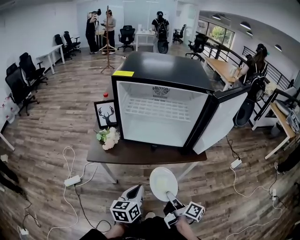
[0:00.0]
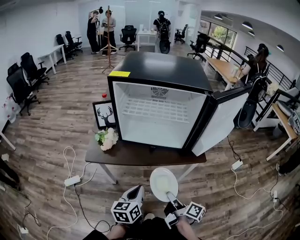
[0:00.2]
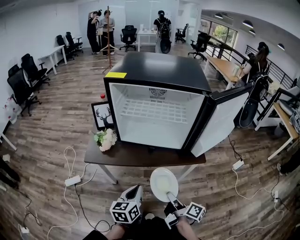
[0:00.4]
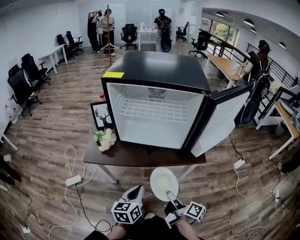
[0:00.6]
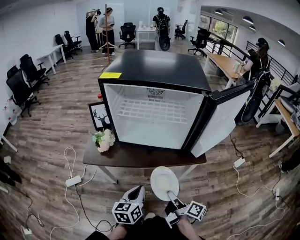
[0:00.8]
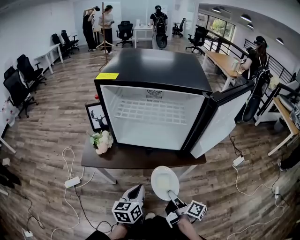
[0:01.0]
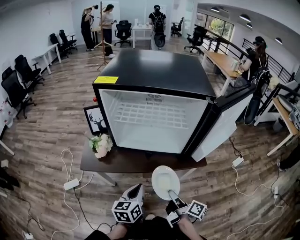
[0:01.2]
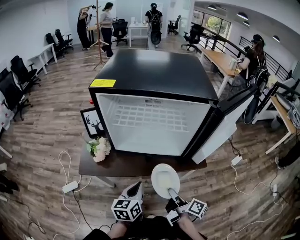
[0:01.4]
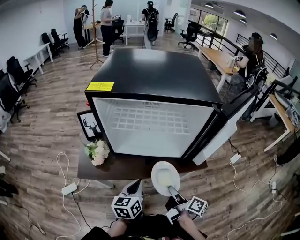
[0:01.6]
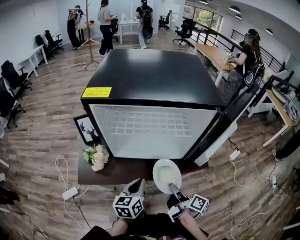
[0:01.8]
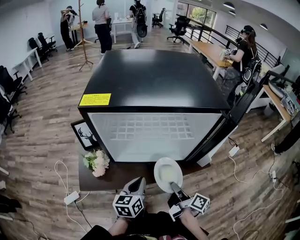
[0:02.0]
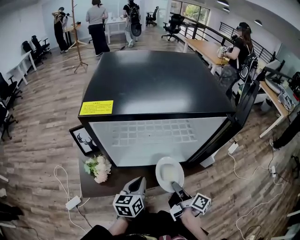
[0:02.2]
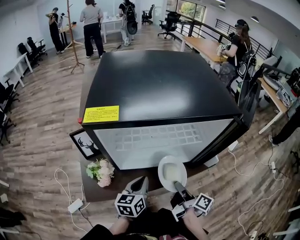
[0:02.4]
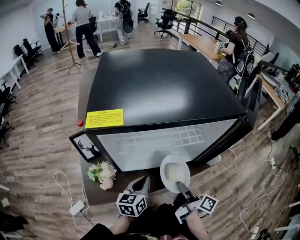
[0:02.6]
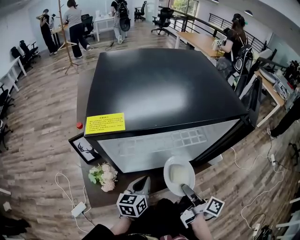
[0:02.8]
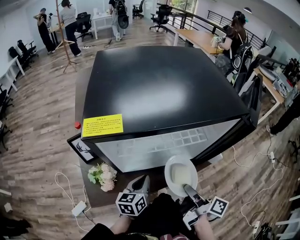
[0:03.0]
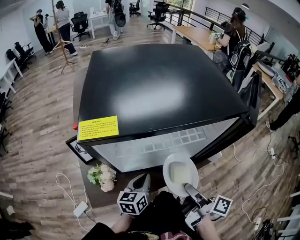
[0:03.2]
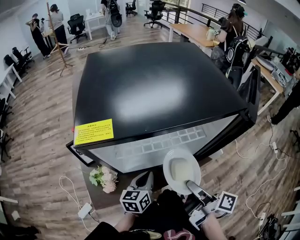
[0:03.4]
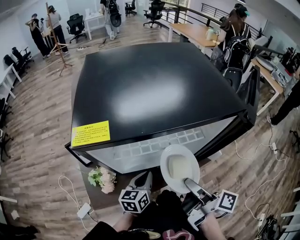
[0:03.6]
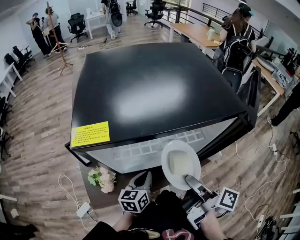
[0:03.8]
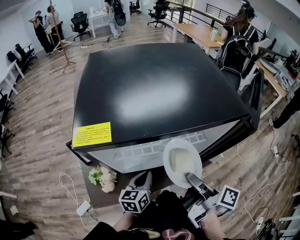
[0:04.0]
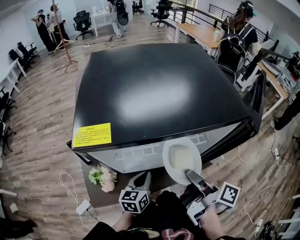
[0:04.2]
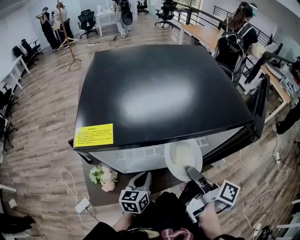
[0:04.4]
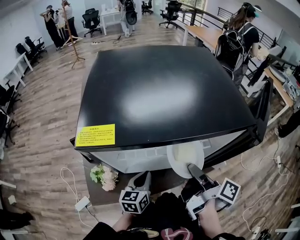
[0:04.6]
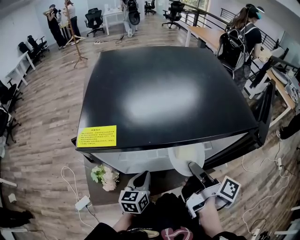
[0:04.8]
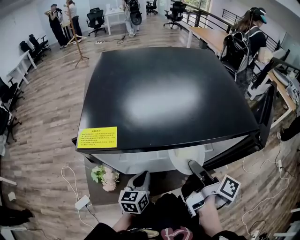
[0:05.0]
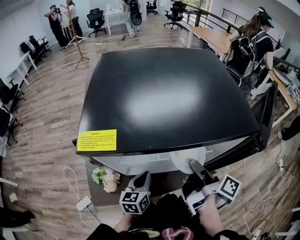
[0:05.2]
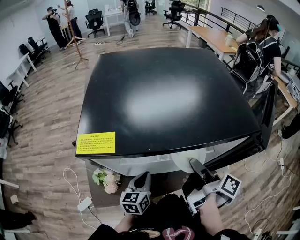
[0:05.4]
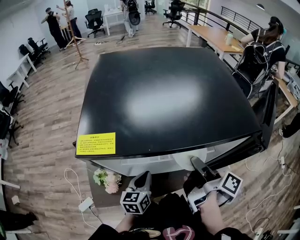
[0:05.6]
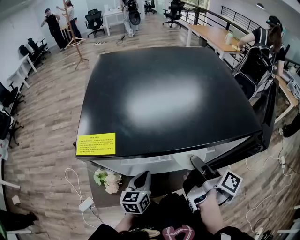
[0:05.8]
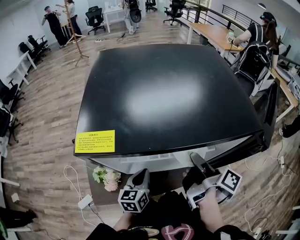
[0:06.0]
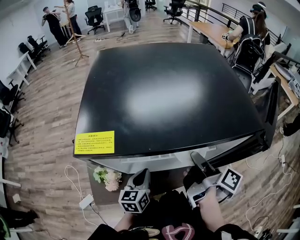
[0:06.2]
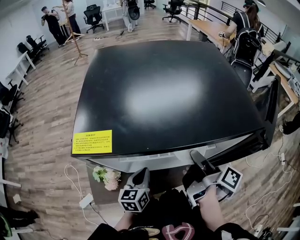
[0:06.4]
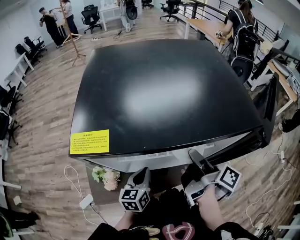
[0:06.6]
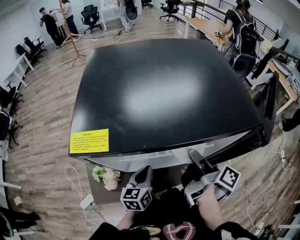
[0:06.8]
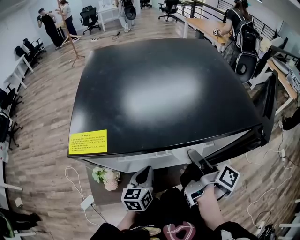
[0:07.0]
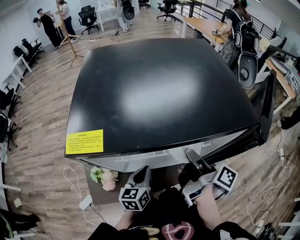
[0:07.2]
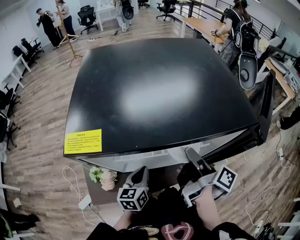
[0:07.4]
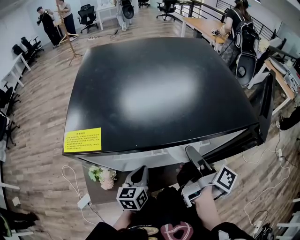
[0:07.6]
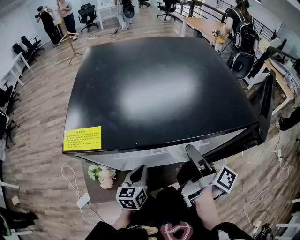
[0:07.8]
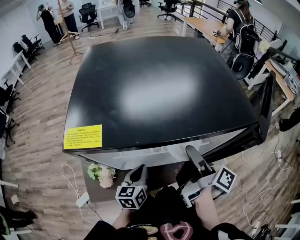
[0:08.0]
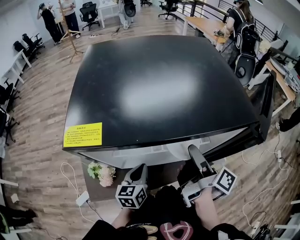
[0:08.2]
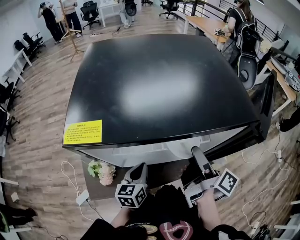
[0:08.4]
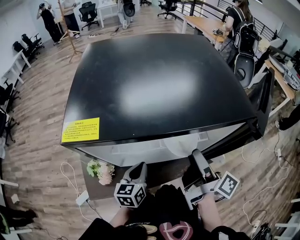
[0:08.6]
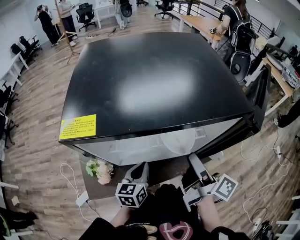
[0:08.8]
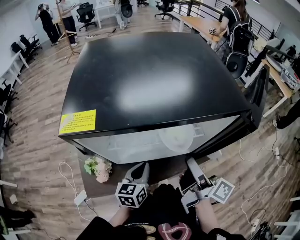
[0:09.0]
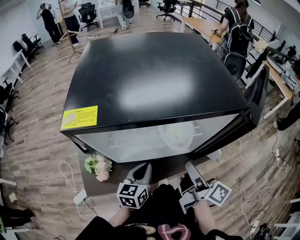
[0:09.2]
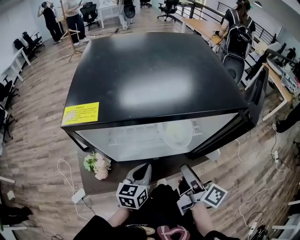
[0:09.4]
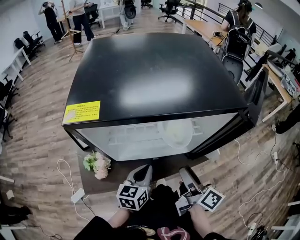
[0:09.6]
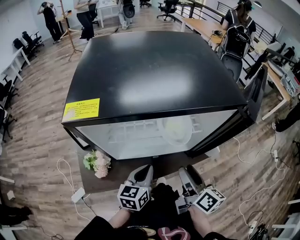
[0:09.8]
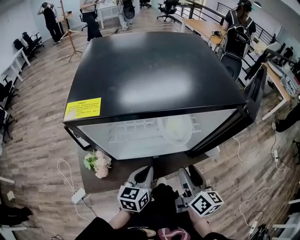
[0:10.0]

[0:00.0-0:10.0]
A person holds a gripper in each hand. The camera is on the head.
0:00.0 to 0:01.4: Both grippers move forward, roughly 10 cm.
0:01.4 to 0:02.8: The right gripper goes about 15 cm forward, to the left and upward. Meanwhile the left gripper travels forward and to the left by about 15 cm.
0:02.8 to 0:04.2: The right gripper heads upward and forward, covering approximately 10 cm.
0:04.2 to 0:05.8: The right gripper is displaced forward by approximately 10 cm.
0:05.8 to 0:07.2: The grippers make only small movements.
0:07.2 to 0:08.6: The right gripper opens its fingers.
0:08.6 to 0:10.0: The left gripper goes about 5 cm backward, while the right gripper is displaced backward and downward by approximately 10 cm, and turns by roughly 40 degrees.

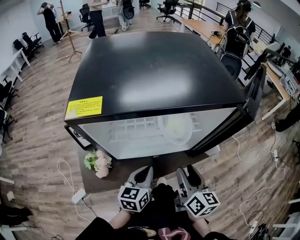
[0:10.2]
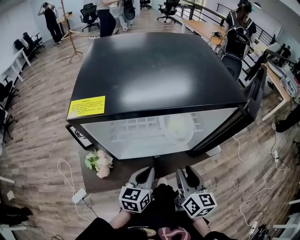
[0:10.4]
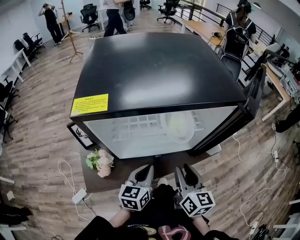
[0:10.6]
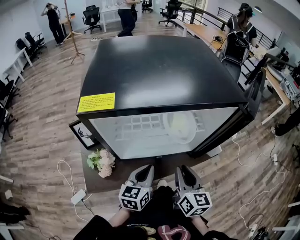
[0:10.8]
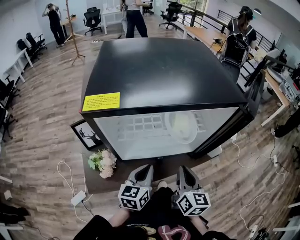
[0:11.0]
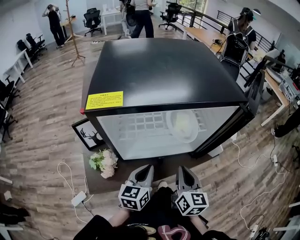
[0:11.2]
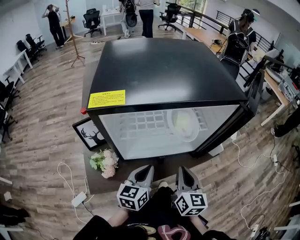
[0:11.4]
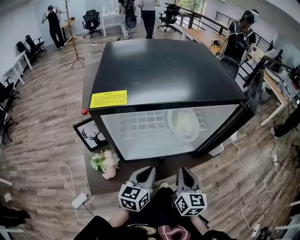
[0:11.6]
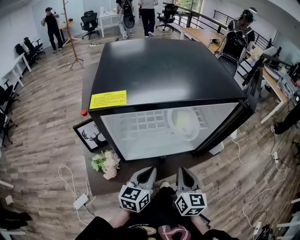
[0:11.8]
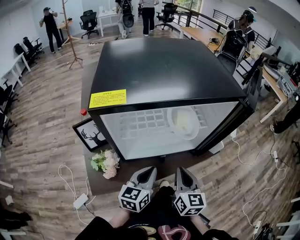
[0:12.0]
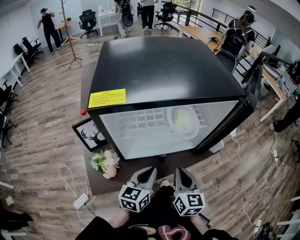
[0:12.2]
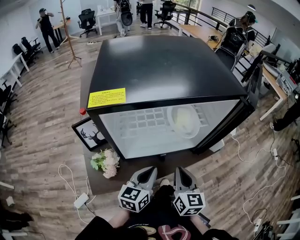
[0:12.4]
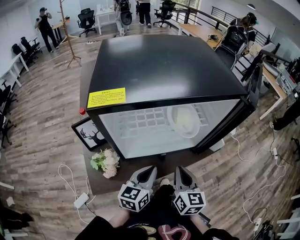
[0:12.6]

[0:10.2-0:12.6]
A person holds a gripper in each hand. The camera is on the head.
0:10.2 to 0:11.4: The right gripper closes its fingers.
0:11.4 to 0:12.6: There are only small adjustments of the grippers.

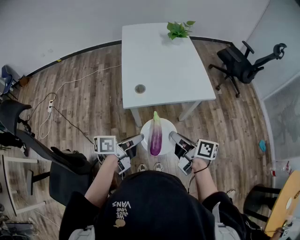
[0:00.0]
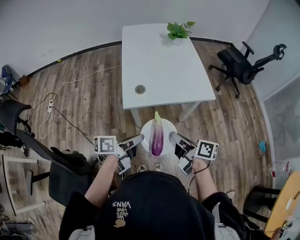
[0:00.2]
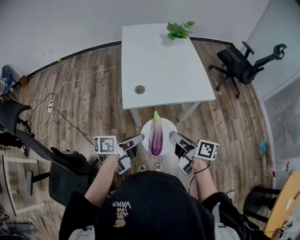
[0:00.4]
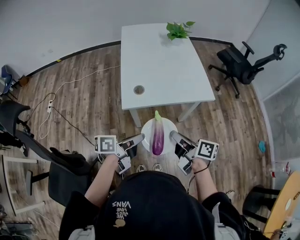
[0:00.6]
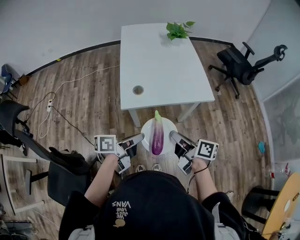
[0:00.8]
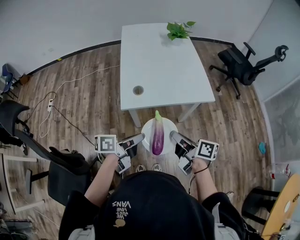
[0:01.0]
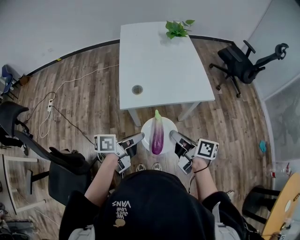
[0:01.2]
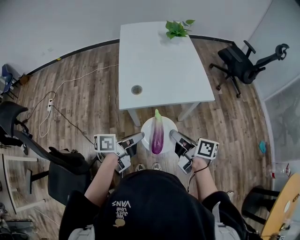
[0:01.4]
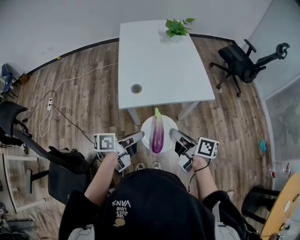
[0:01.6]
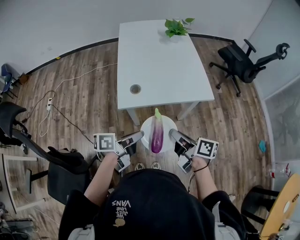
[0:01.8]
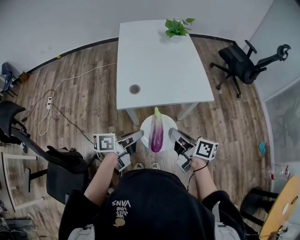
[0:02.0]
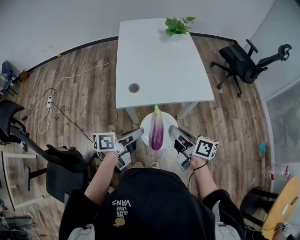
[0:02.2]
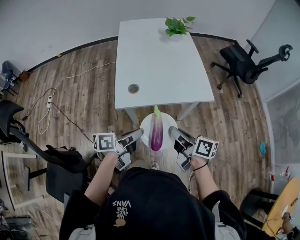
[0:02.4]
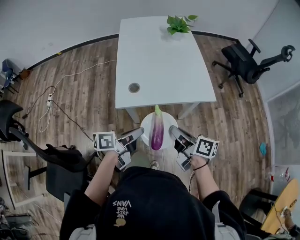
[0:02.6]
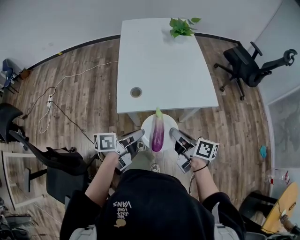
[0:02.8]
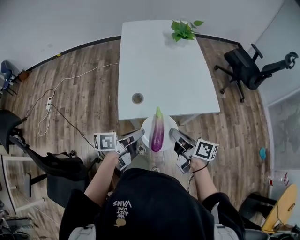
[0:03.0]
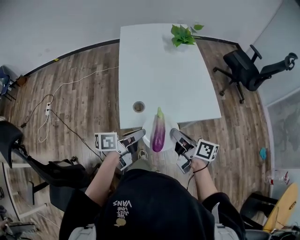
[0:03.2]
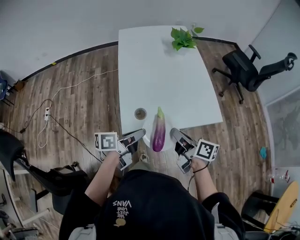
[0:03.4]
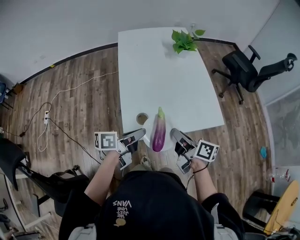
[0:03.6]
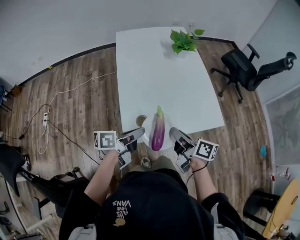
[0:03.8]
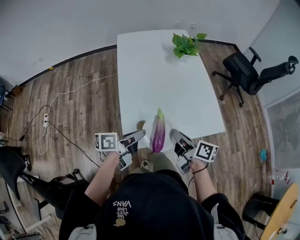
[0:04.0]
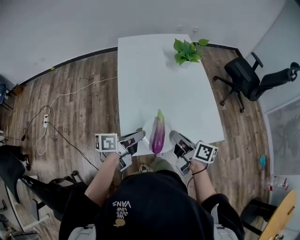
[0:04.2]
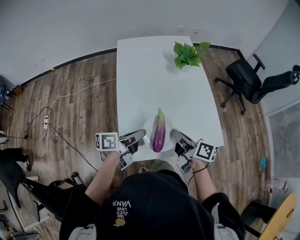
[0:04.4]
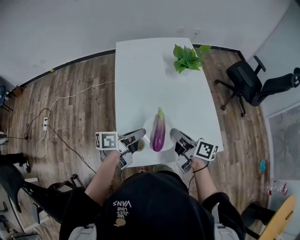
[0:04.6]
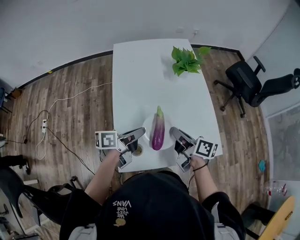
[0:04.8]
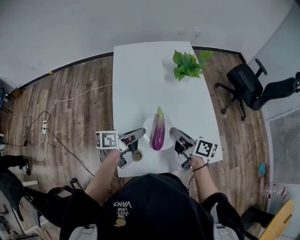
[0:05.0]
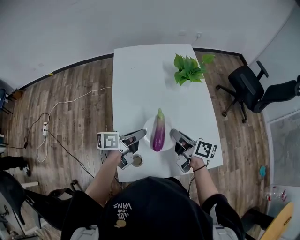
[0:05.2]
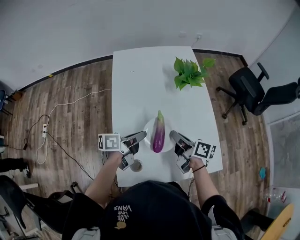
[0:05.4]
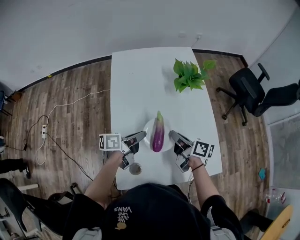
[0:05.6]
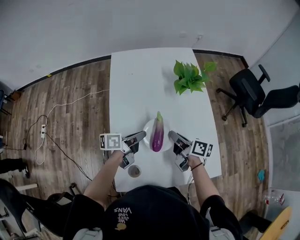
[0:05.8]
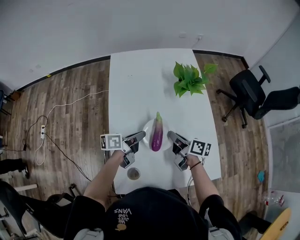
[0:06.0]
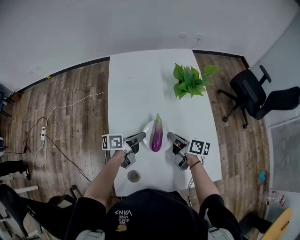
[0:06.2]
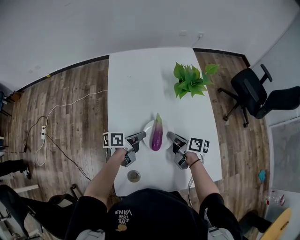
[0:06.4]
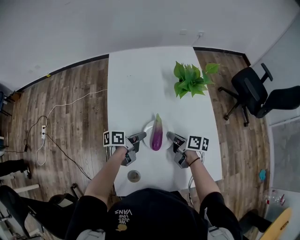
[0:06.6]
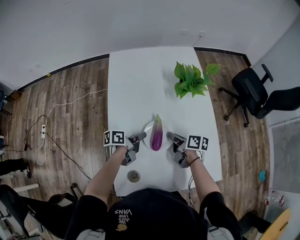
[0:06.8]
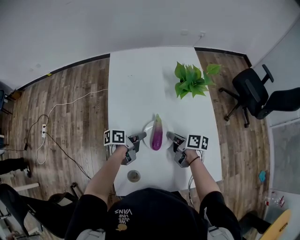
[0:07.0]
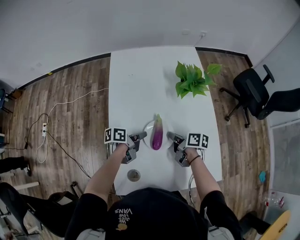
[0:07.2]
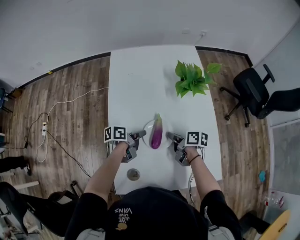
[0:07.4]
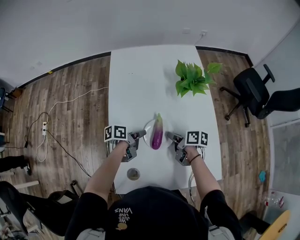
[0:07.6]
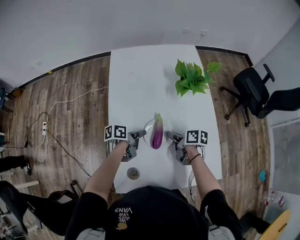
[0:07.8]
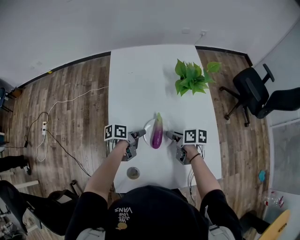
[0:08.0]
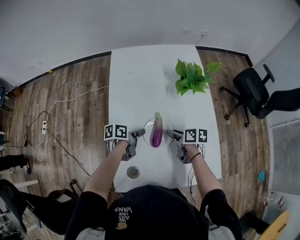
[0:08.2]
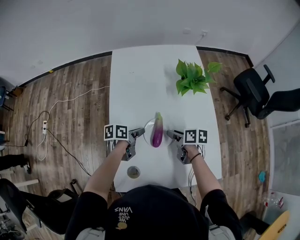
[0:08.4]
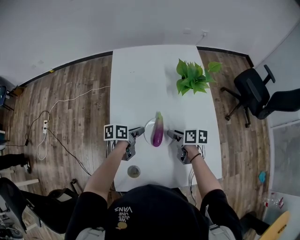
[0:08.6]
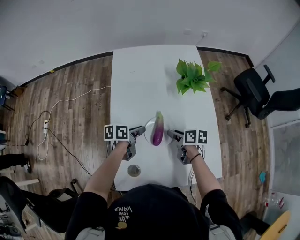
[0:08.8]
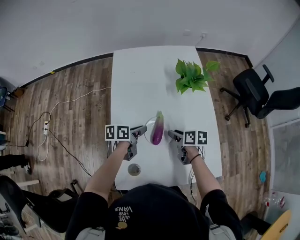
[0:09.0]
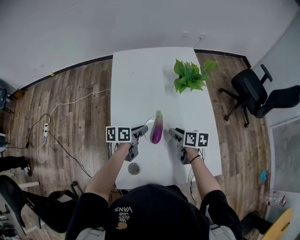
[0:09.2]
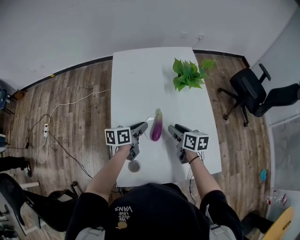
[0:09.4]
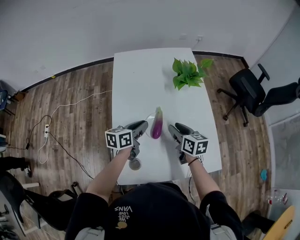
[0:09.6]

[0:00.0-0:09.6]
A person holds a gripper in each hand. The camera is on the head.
0:00.0 to 0:01.6: The grippers make only small movements.
0:01.6 to 0:03.2: Both grippers move forward, approximately 10 cm.
0:03.2 to 0:04.8: The two grippers go about 25 cm forward.
0:04.8 to 0:06.4: Both grippers travel together forward and downward, approximately 15 cm.
0:06.4 to 0:08.0: The right gripper opens its fingers.
0:08.0 to 0:09.6: Both grippers travel together upward, roughly 10 cm. The left gripper turns by roughly 40 degrees; the right gripper rotates some 30 degrees.

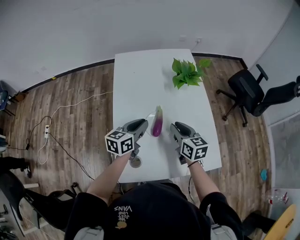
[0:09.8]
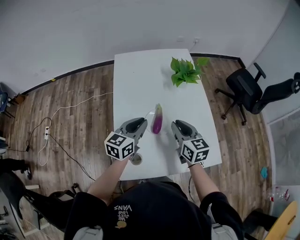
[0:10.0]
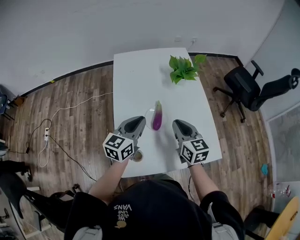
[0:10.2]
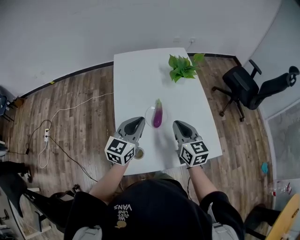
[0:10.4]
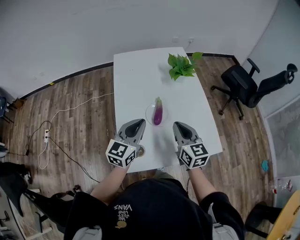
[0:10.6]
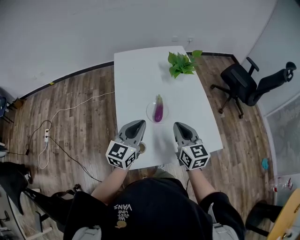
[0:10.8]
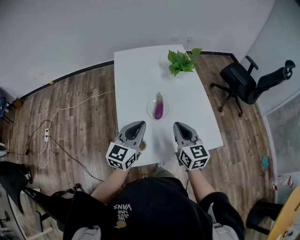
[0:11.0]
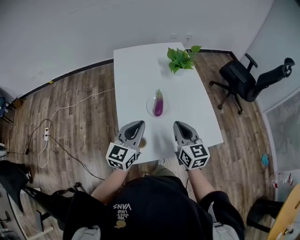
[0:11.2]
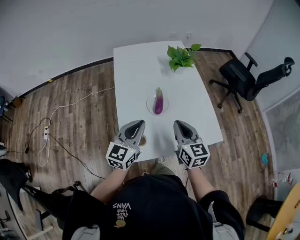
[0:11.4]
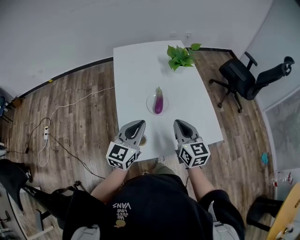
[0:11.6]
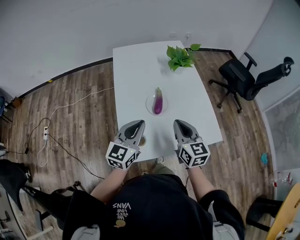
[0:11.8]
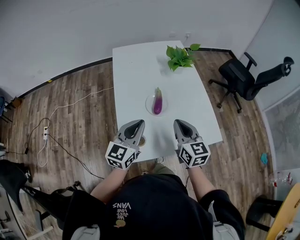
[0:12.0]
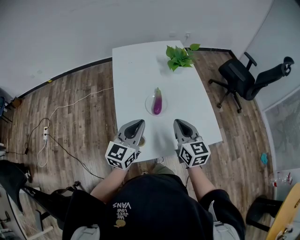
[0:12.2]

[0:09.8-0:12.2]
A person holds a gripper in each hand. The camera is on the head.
0:09.8 to 0:11.0: Both grippers move backward and upward, about 15 cm. The left gripper rotates approximately 30 degrees.
0:11.0 to 0:12.2: There are only small adjustments of the grippers.
